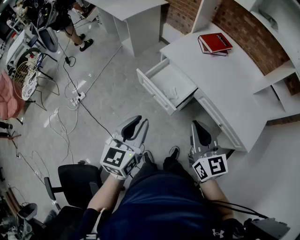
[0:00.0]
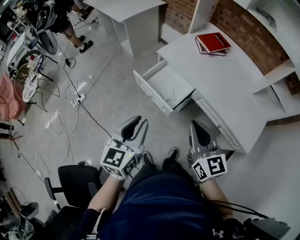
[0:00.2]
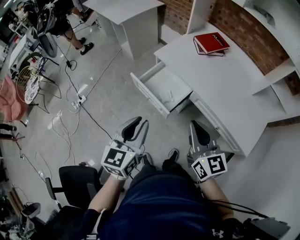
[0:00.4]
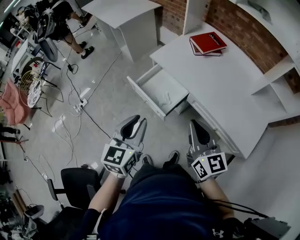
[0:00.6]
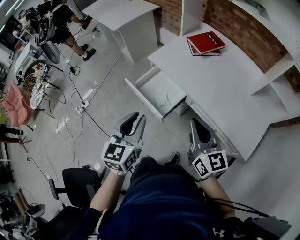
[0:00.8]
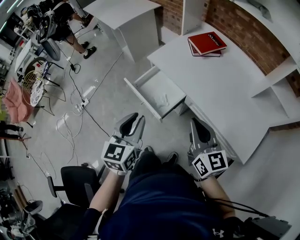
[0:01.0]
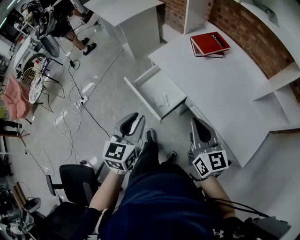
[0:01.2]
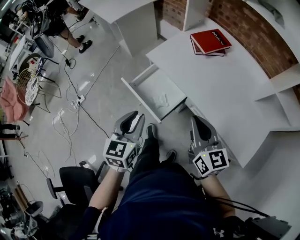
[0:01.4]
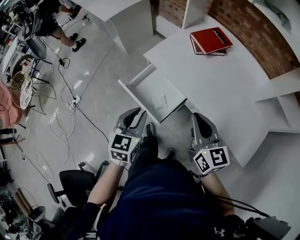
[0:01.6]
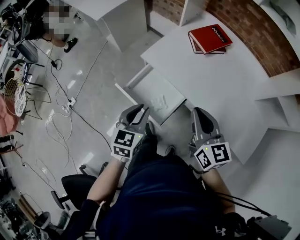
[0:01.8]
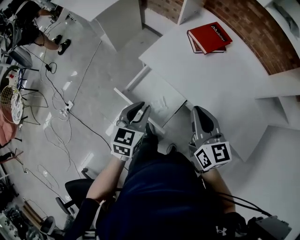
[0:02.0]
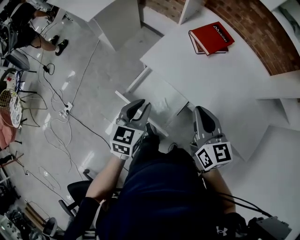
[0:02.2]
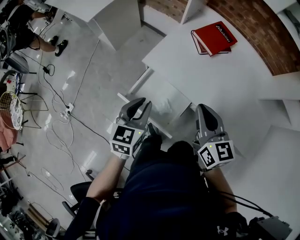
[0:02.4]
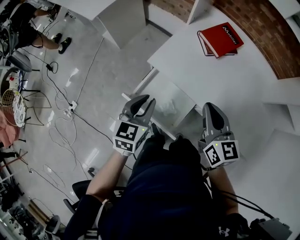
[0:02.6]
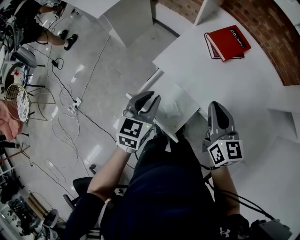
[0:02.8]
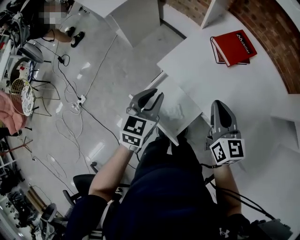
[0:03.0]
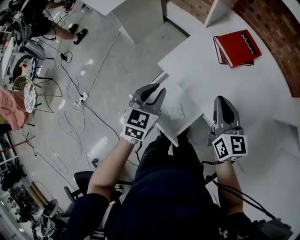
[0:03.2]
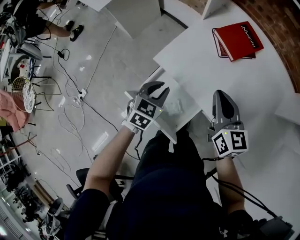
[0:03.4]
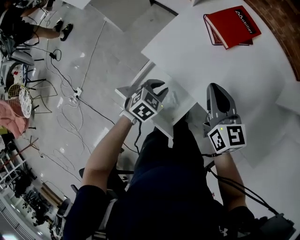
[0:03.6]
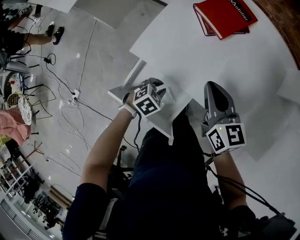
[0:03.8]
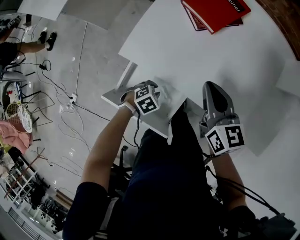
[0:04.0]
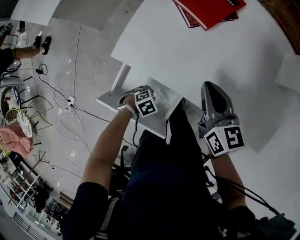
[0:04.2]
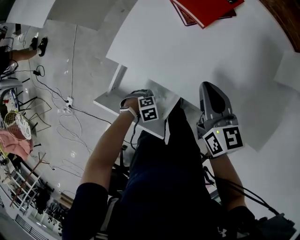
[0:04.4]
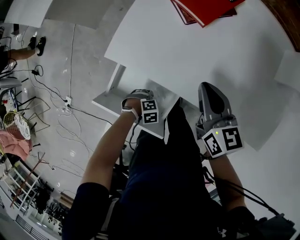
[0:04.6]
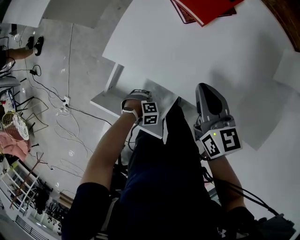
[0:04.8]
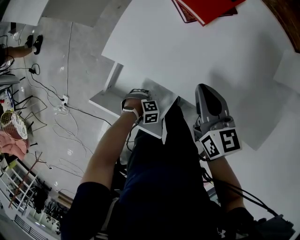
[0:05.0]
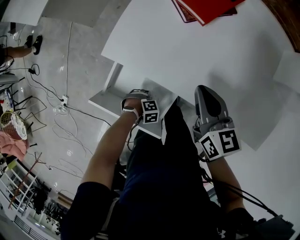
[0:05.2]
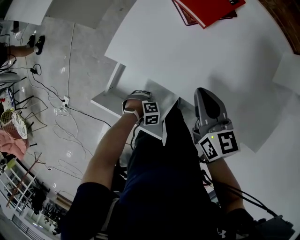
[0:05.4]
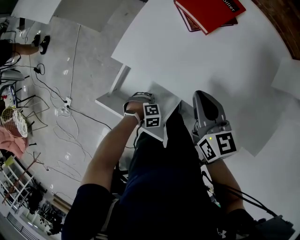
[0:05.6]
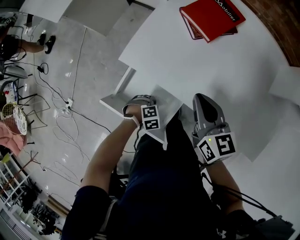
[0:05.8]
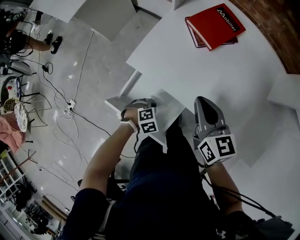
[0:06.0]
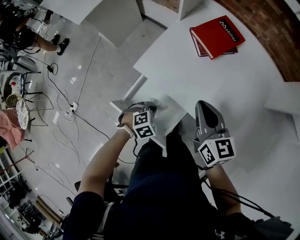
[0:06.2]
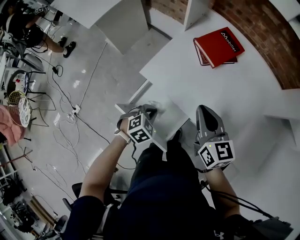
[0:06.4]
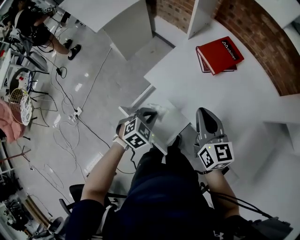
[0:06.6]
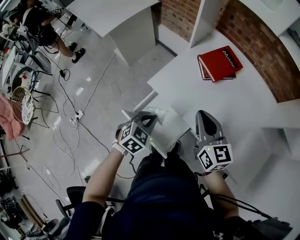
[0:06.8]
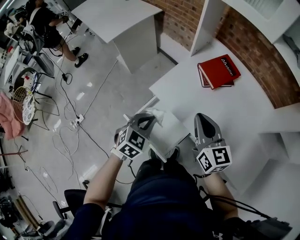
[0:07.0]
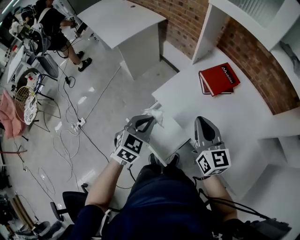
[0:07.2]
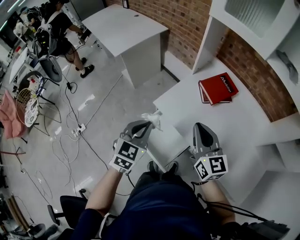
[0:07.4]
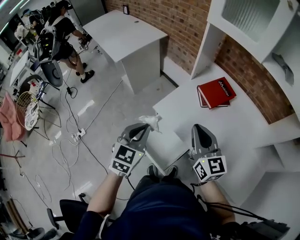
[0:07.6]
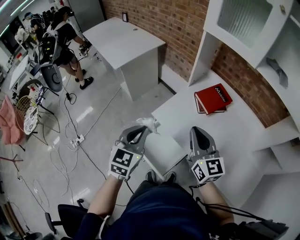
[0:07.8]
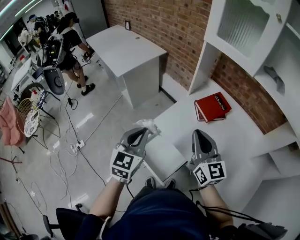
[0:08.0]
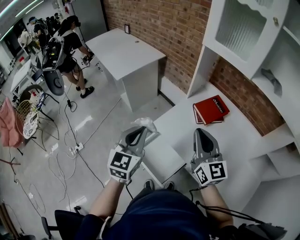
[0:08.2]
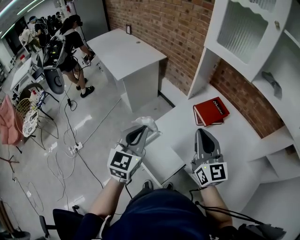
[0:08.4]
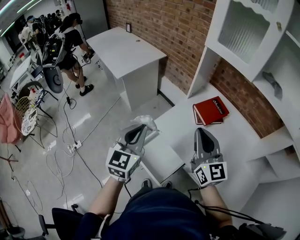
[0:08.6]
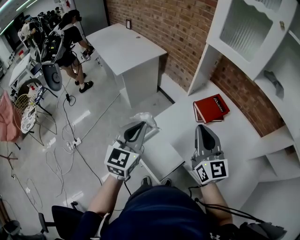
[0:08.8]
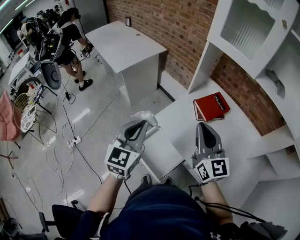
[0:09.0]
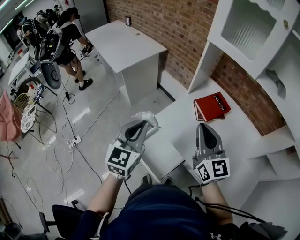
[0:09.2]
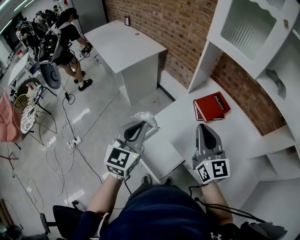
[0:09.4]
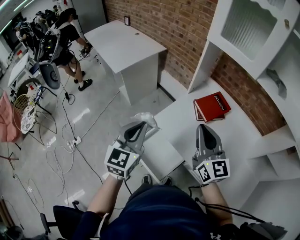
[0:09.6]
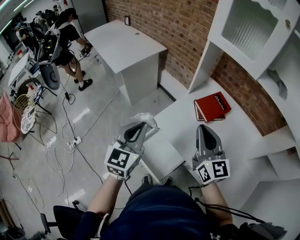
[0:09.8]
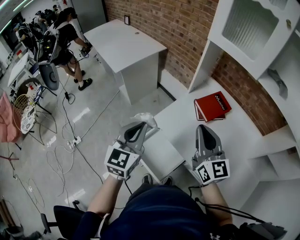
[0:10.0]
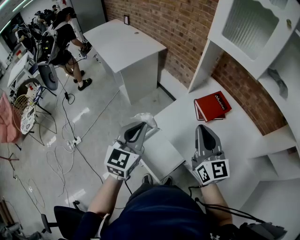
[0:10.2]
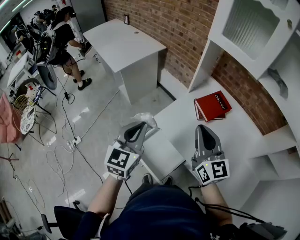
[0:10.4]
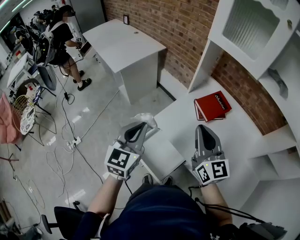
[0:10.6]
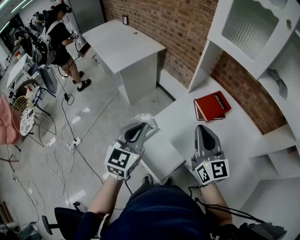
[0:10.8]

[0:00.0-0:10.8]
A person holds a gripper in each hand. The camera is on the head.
0:00.0 to 0:01.6: The left gripper shifts approximately 20 cm forward, to the right and downward, while the right gripper shifts about 20 cm forward and to the right.
0:01.6 to 0:03.0: The two grippers go roughly 20 cm forward.
0:03.0 to 0:04.6: The left gripper shifts roughly 40 cm downward, and angles its fingers downward, by about 50 degrees, while the right gripper moves downward, some 10 cm.
0:04.6 to 0:06.2: The right gripper is displaced upward by some 5 cm. The left gripper shifts some 15 cm upward, changes its angle by some 30 degrees, and closes its fingers.
0:06.2 to 0:07.8: The right gripper shifts approximately 15 cm upward, and rotates approximately 20 degrees; the left gripper moves upward, roughly 35 cm, and points its fingers approximately 50 degrees further upward.
0:07.8 to 0:09.2: The grippers both shift upward by some 5 cm.
0:09.2 to 0:10.8: There are only small adjustments of the grippers.

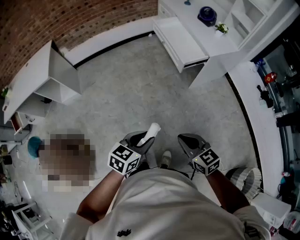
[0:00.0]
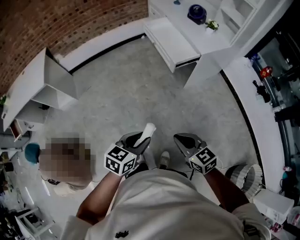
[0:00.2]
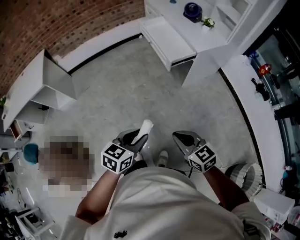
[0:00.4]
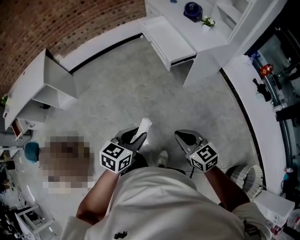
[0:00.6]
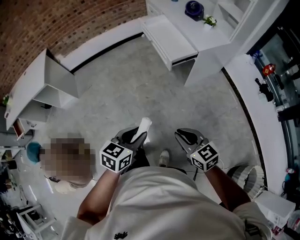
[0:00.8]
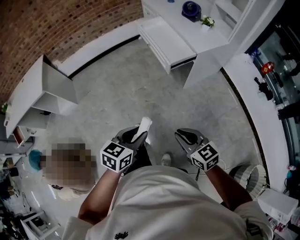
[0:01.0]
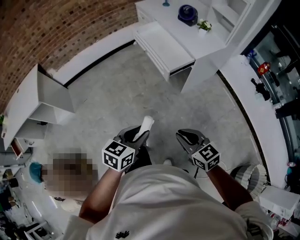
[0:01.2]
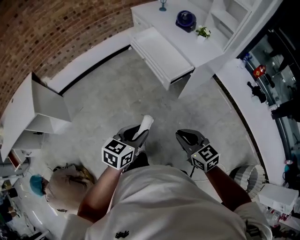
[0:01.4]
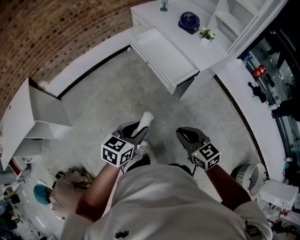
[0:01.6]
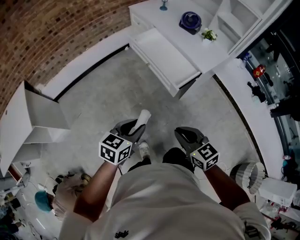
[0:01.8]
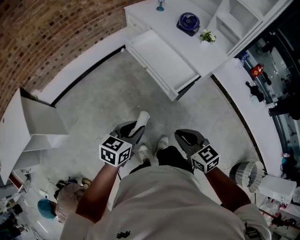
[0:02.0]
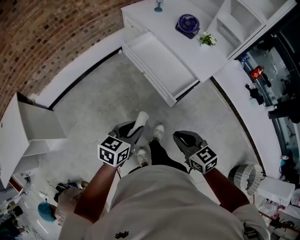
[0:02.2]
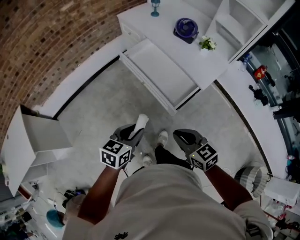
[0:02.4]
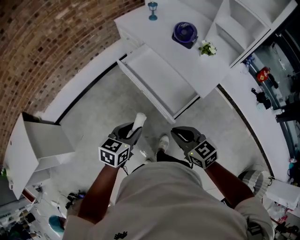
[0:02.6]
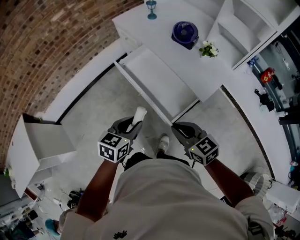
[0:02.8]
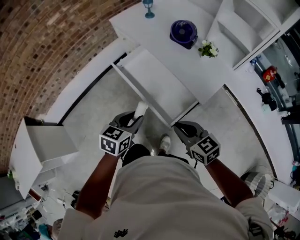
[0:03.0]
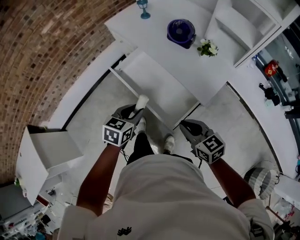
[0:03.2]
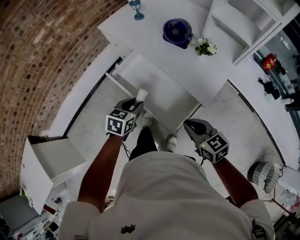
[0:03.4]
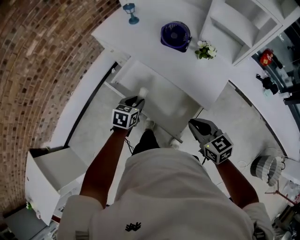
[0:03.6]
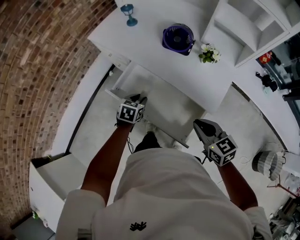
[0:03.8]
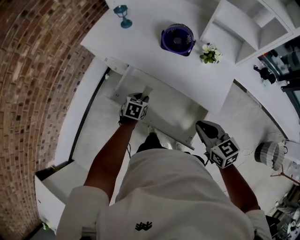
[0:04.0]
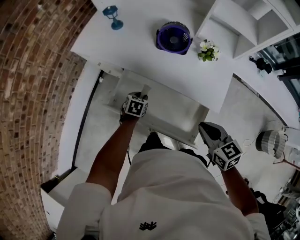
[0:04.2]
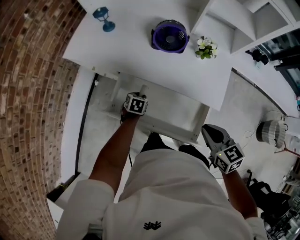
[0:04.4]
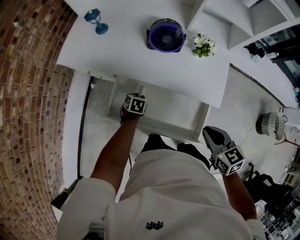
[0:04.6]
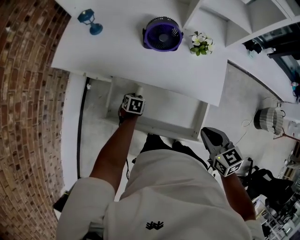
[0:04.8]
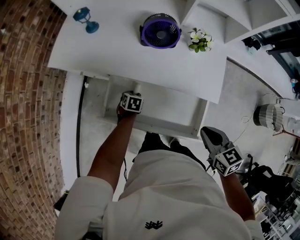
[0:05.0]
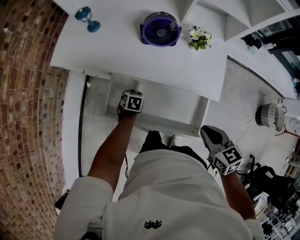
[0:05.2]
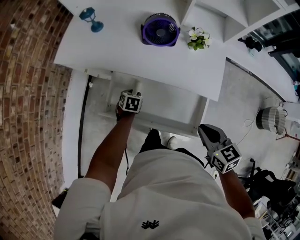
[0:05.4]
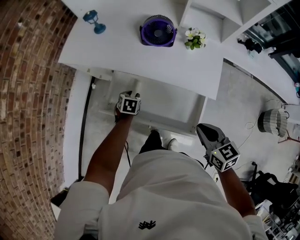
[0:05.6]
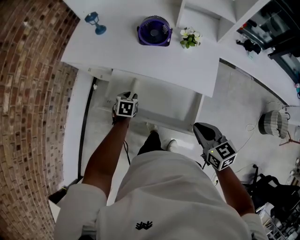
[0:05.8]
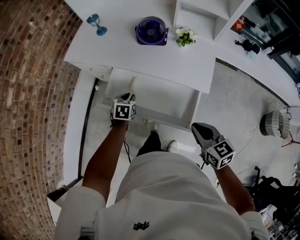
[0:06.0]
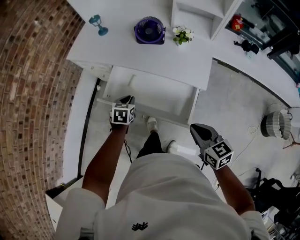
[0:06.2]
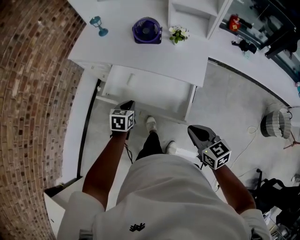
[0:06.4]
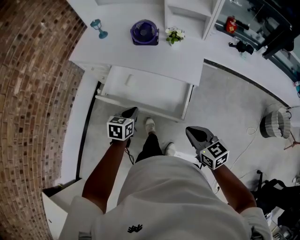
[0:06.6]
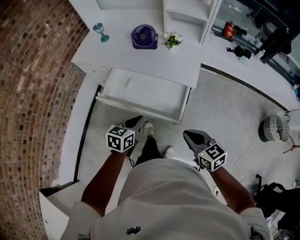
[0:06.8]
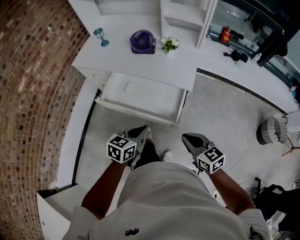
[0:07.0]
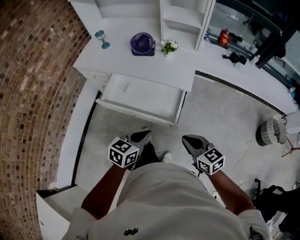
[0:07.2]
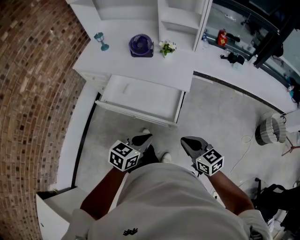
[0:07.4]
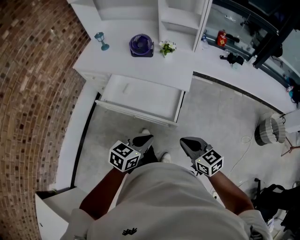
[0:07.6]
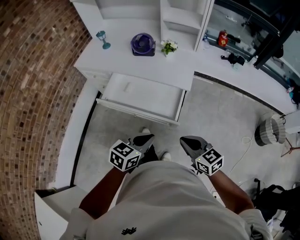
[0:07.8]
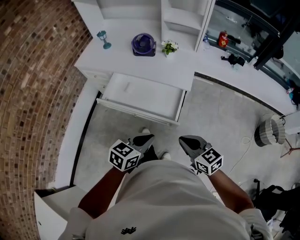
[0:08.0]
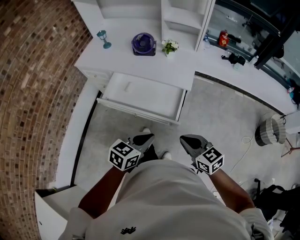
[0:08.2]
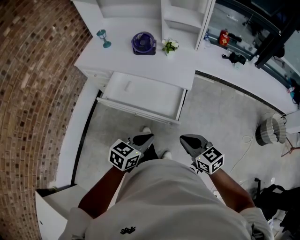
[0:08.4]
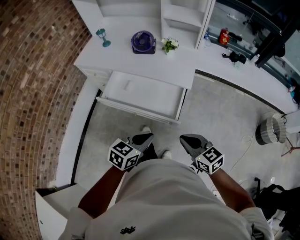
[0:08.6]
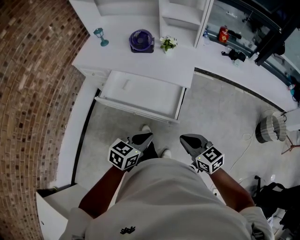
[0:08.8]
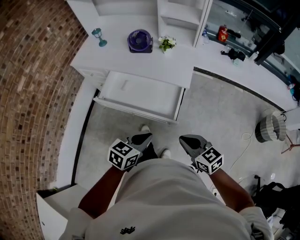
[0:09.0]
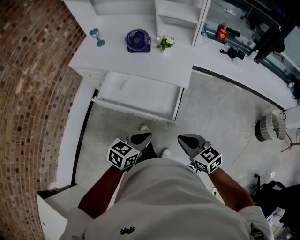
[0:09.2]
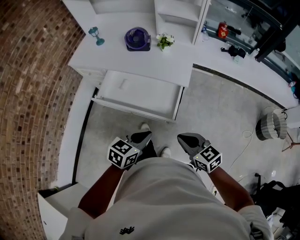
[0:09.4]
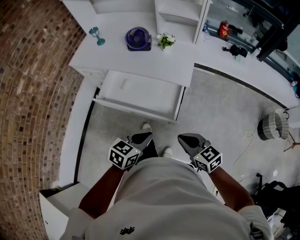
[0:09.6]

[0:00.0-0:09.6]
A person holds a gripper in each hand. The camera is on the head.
0:00.0 to 0:01.6: Both grippers travel together forward, roughly 25 cm.
0:01.6 to 0:03.2: The grippers both shift forward by approximately 40 cm.
0:03.2 to 0:04.8: The left gripper heads downward, covering some 30 cm, and rotates about 30 degrees. The right gripper changes place by roughly 15 cm, and swivels some 40 degrees.
0:04.8 to 0:06.4: The left gripper goes some 25 cm upward and backward, swivels roughly 20 degrees, and closes up, while the right gripper travels backward by roughly 15 cm.
0:06.4 to 0:08.0: The right gripper is displaced backward by about 10 cm; the left gripper is displaced backward, to the right and upward by approximately 30 cm, and swivels about 30 degrees.
0:08.0 to 0:09.6: The grippers stay close to where they were, moving slightly.

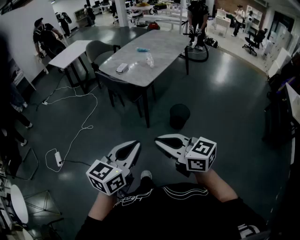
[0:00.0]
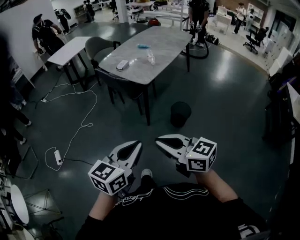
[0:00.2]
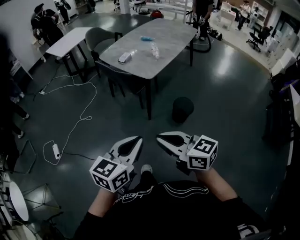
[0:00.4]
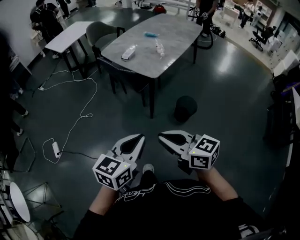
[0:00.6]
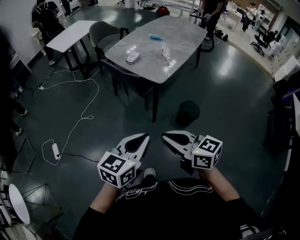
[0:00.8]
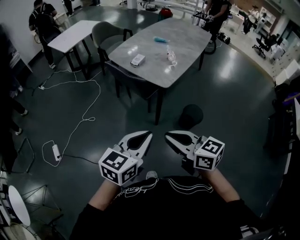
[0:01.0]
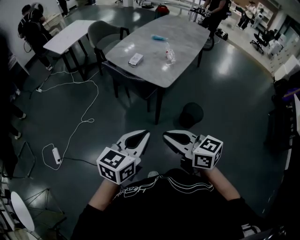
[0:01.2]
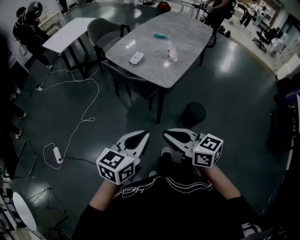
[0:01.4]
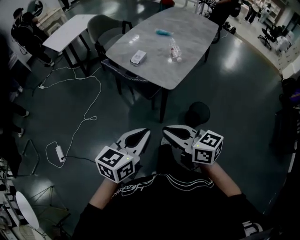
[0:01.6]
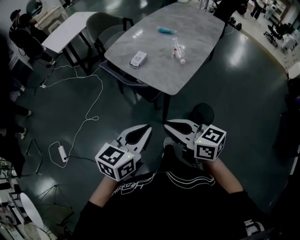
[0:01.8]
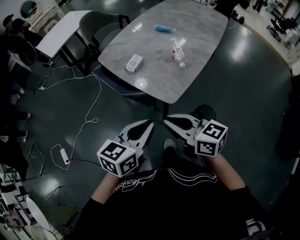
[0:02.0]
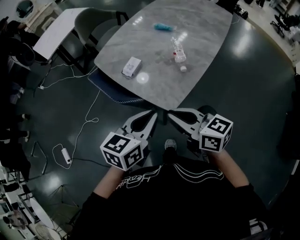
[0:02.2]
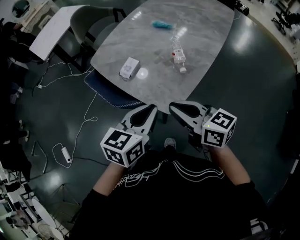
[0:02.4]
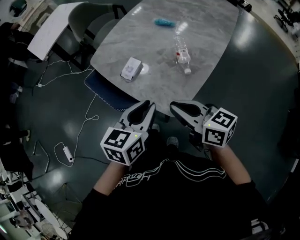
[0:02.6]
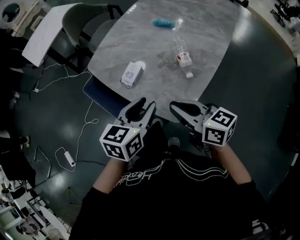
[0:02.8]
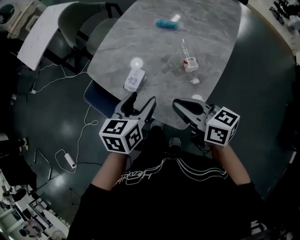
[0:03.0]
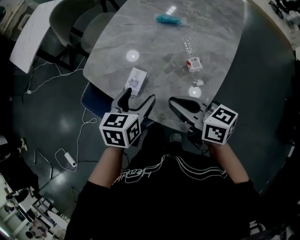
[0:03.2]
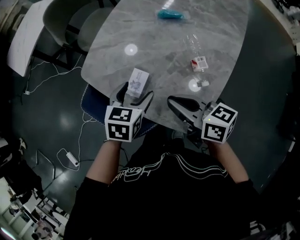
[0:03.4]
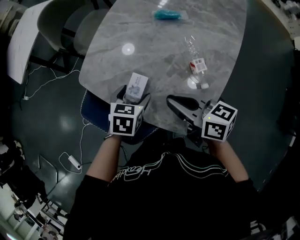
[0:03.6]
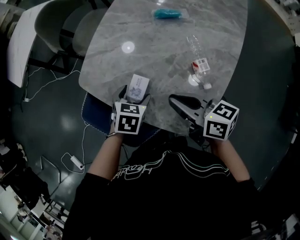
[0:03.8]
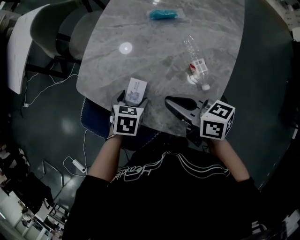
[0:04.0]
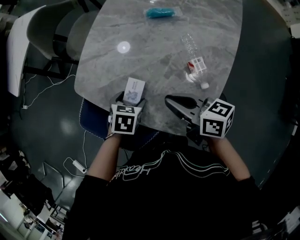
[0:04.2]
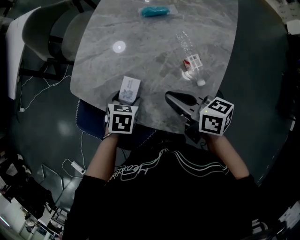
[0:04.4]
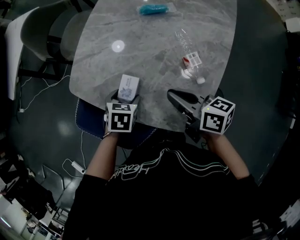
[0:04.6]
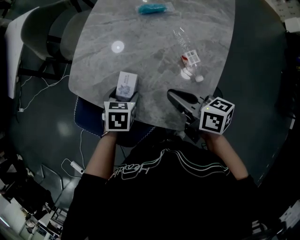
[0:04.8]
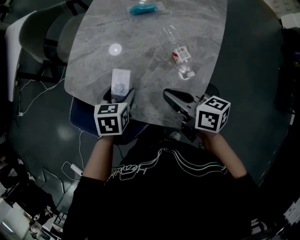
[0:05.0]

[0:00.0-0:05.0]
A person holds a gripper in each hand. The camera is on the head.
0:00.0 to 0:01.6: The grippers both shift forward by about 30 cm.
0:01.6 to 0:03.4: The two grippers travel together, forward, approximately 50 cm. The left gripper turns by approximately 30 degrees, and opens.
0:03.4 to 0:05.0: The right gripper moves approximately 5 cm. The left gripper travels downward by approximately 5 cm.
